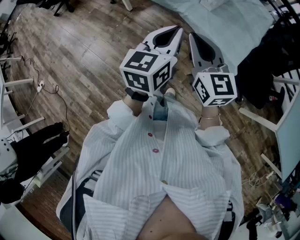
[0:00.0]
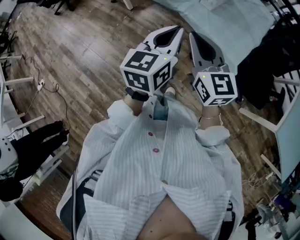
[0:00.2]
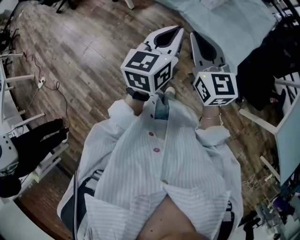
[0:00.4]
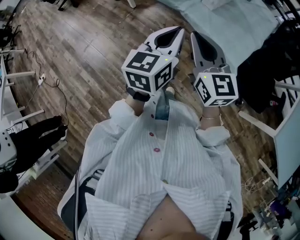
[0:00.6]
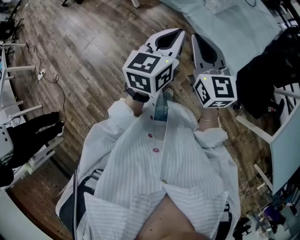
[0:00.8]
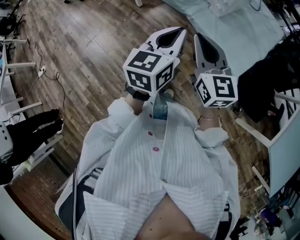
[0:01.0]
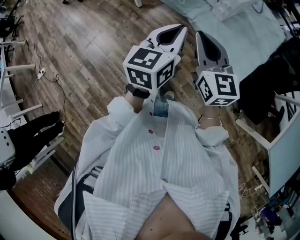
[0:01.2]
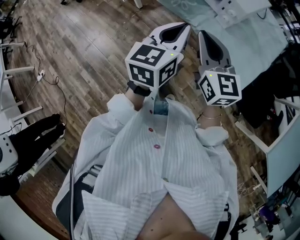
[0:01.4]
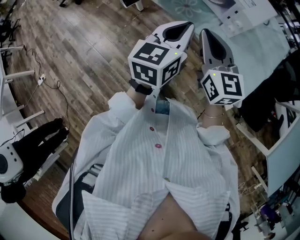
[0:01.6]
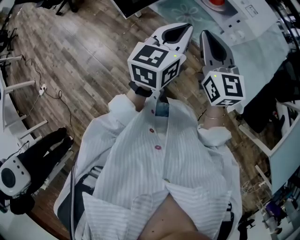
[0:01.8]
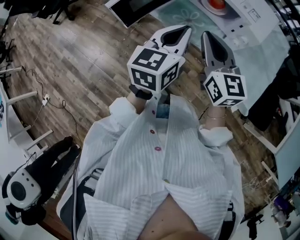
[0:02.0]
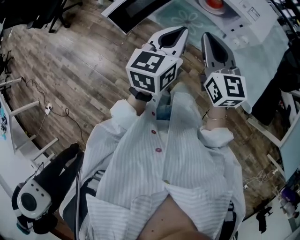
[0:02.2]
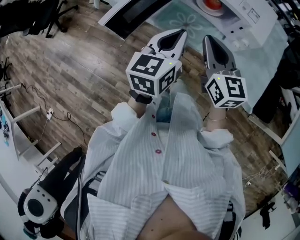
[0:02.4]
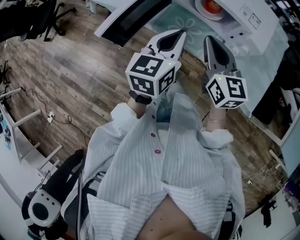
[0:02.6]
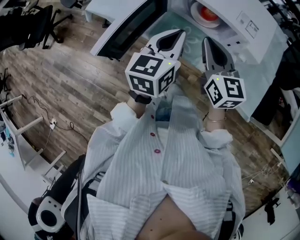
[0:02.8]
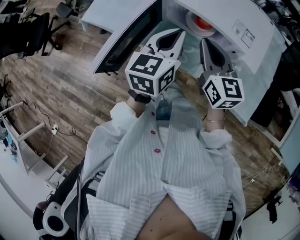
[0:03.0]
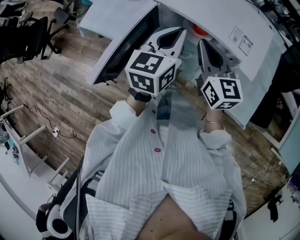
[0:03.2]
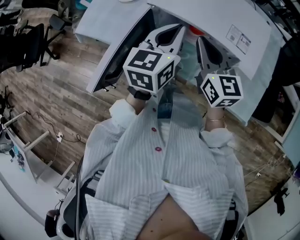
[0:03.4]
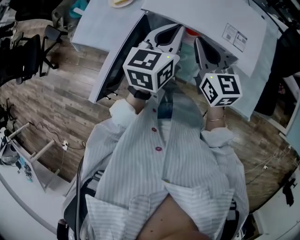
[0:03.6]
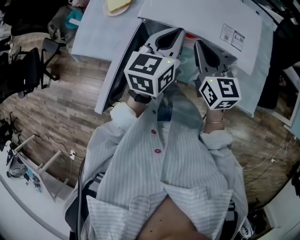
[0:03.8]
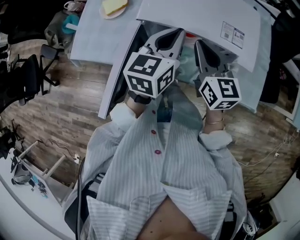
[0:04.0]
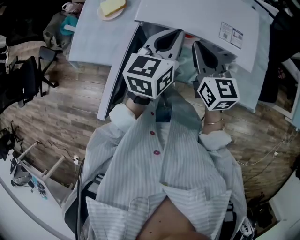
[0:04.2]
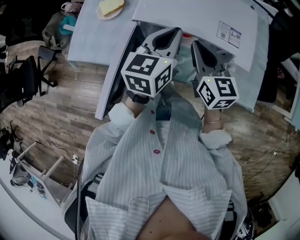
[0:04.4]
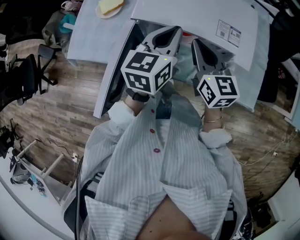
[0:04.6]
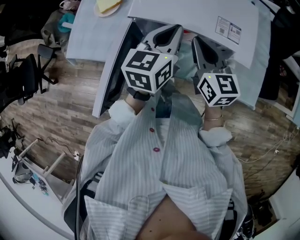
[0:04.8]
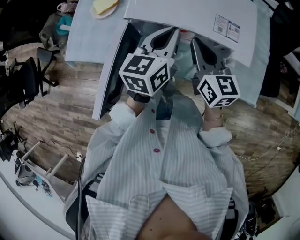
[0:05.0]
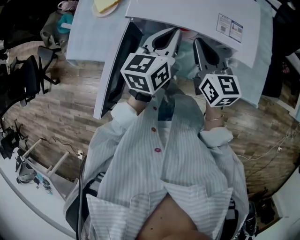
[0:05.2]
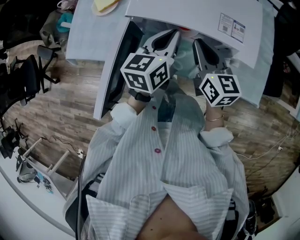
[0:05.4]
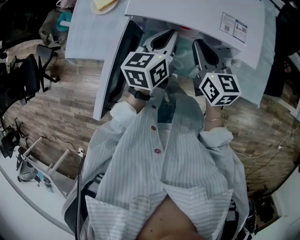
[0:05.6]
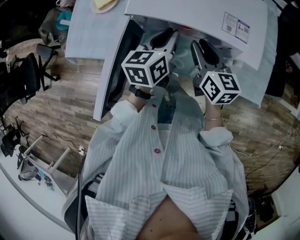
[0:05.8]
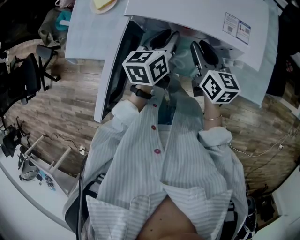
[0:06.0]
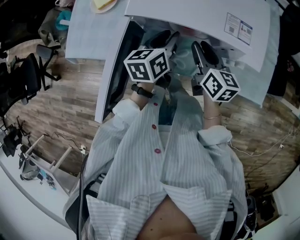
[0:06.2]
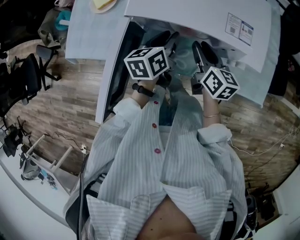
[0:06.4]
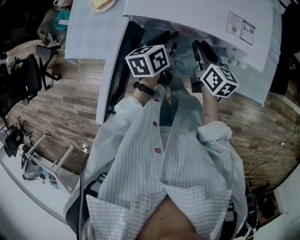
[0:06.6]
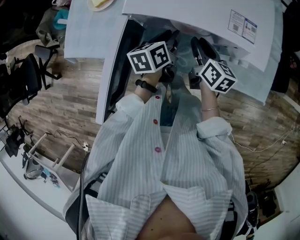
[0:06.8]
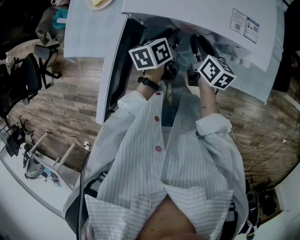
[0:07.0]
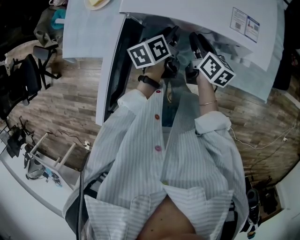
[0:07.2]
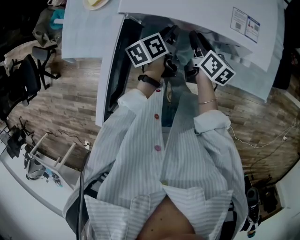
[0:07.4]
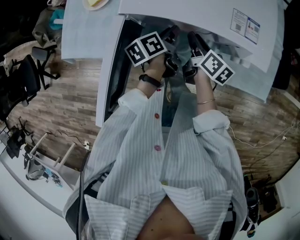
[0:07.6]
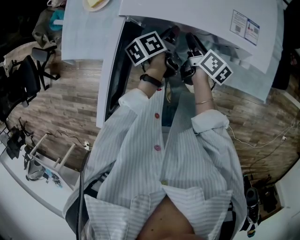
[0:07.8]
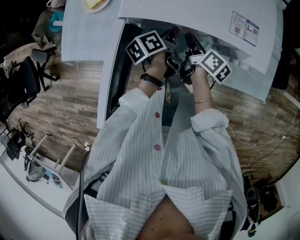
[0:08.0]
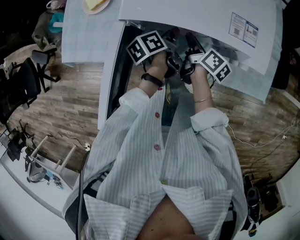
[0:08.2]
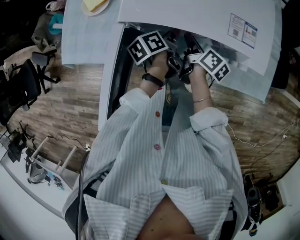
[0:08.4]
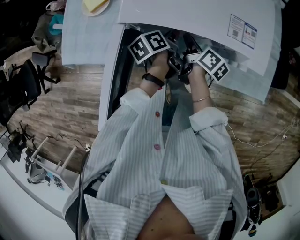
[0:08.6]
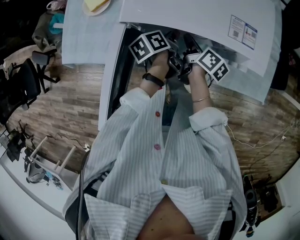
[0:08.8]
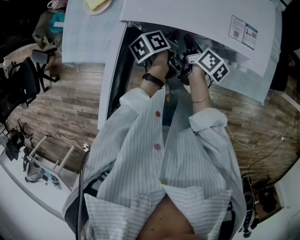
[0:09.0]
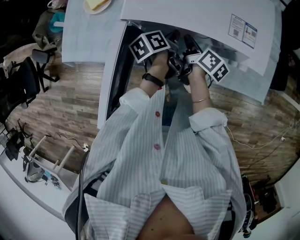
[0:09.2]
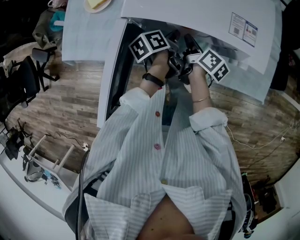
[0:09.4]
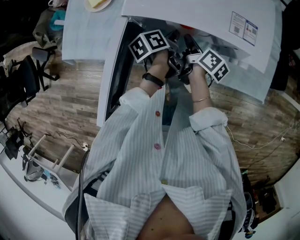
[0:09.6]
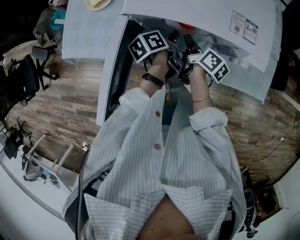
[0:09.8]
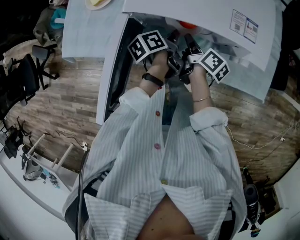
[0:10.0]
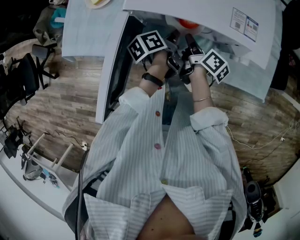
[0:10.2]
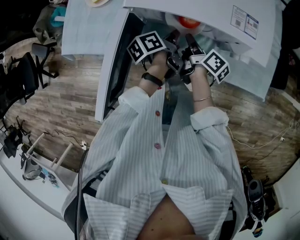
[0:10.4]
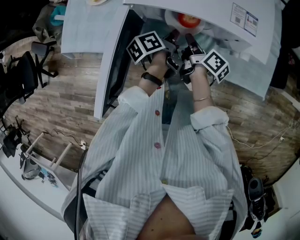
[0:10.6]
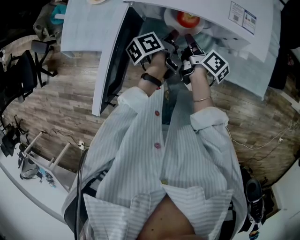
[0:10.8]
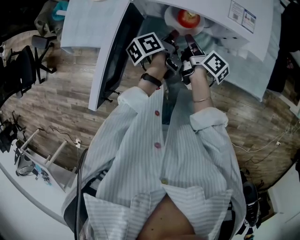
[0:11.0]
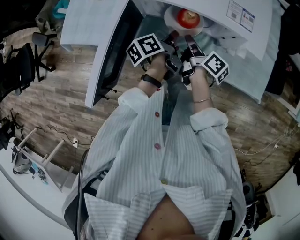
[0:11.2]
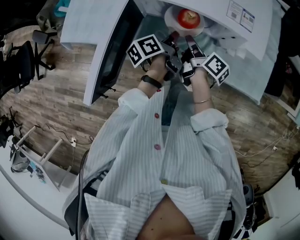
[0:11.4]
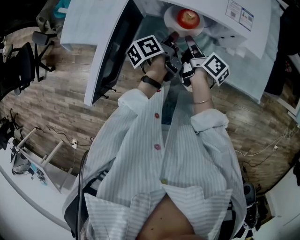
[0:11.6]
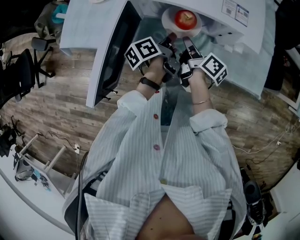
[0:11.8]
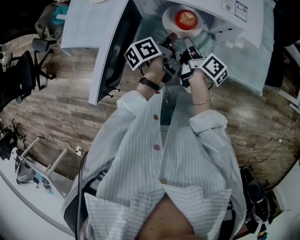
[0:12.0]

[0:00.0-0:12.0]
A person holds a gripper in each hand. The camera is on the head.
0:00.0 to 0:01.6: Both grippers move forward, some 20 cm.
0:01.6 to 0:03.0: Both grippers move forward, about 25 cm.
0:03.0 to 0:04.4: Both grippers move forward, about 10 cm.
0:04.4 to 0:06.0: Both grippers move downward, about 10 cm. The right gripper opens up; the left gripper opens up.
0:06.0 to 0:07.6: The two grippers go some 10 cm downward. The left gripper turns by about 30 degrees. Meanwhile the right gripper changes its angle by some 30 degrees.
0:07.6 to 0:10.4: The grippers move only a little.
0:10.4 to 0:12.0: The grippers both shift backward by some 5 cm.

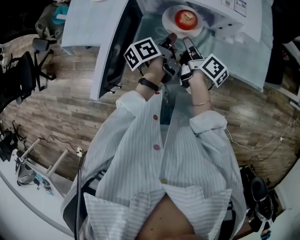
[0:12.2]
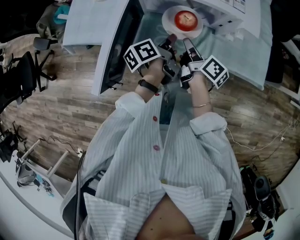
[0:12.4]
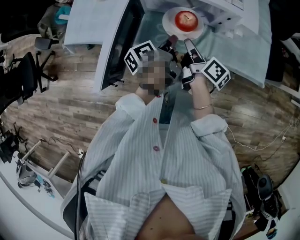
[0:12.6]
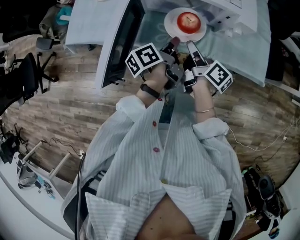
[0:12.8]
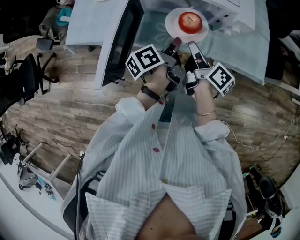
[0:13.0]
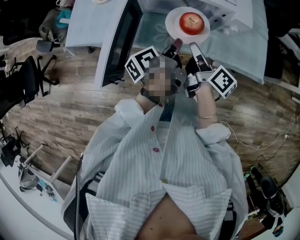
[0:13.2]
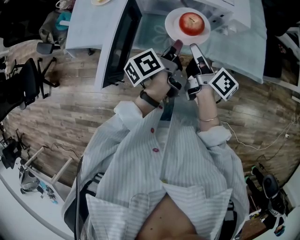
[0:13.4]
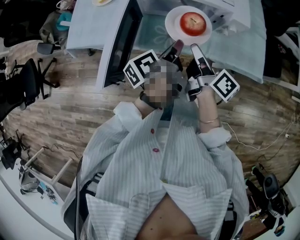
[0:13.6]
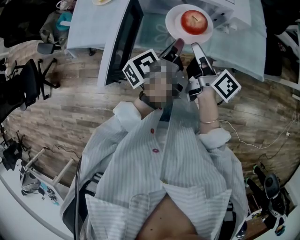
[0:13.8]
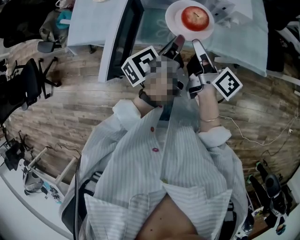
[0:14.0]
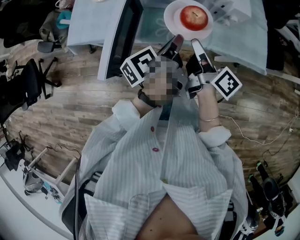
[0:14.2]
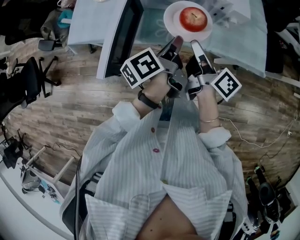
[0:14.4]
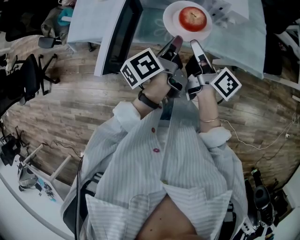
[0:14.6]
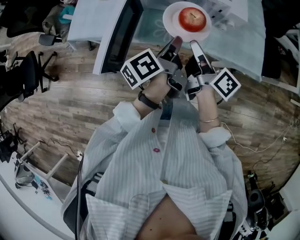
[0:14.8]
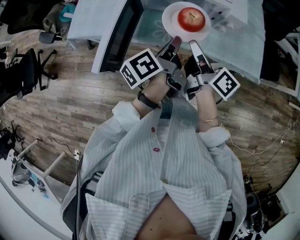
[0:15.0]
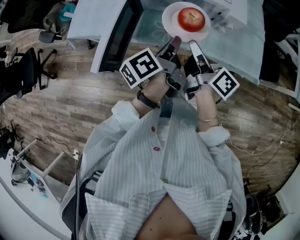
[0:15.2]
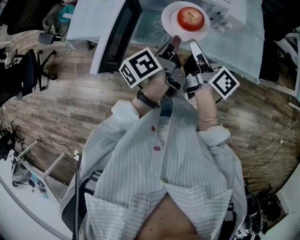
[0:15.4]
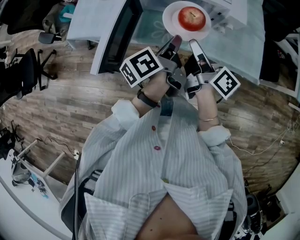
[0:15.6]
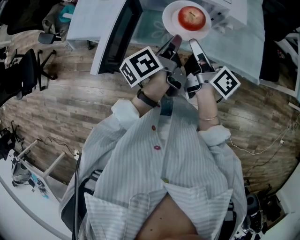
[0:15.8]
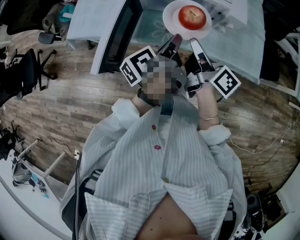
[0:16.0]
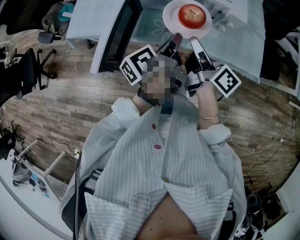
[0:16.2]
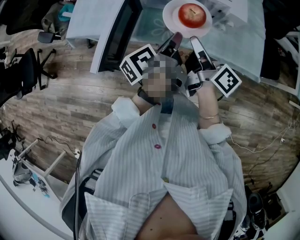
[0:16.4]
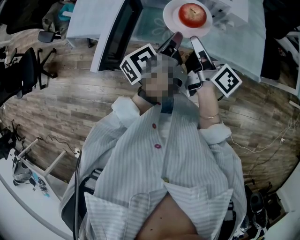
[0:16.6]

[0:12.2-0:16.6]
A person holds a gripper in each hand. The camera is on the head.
0:12.2 to 0:13.6: The grippers both shift upward and backward by roughly 15 cm.
0:13.6 to 0:15.2: The grippers make only small movements.
0:15.2 to 0:16.6: Both grippers stay about where they are.

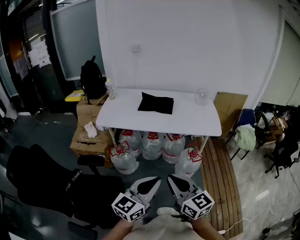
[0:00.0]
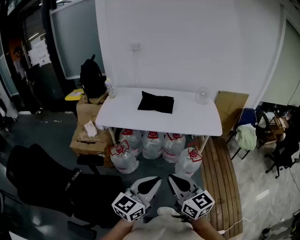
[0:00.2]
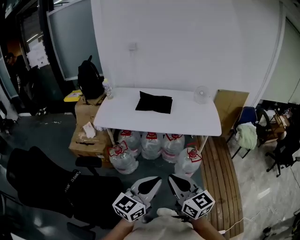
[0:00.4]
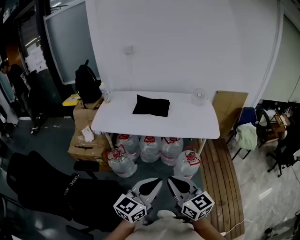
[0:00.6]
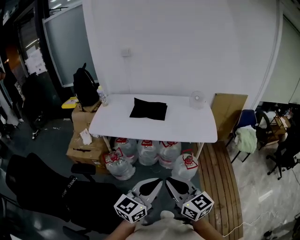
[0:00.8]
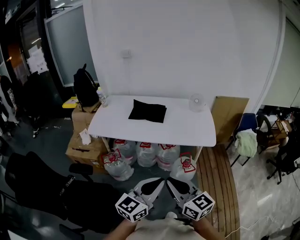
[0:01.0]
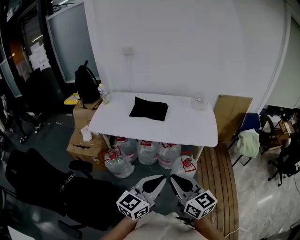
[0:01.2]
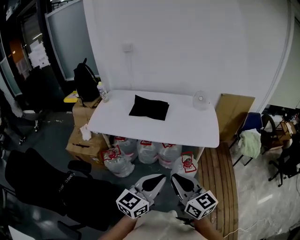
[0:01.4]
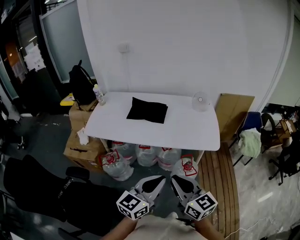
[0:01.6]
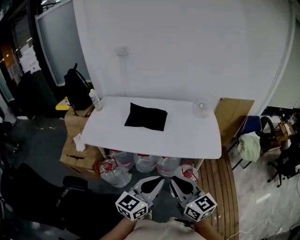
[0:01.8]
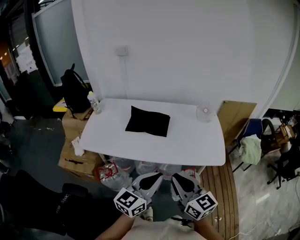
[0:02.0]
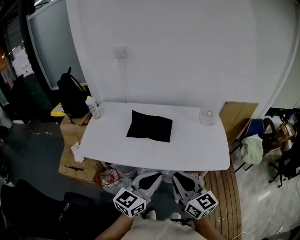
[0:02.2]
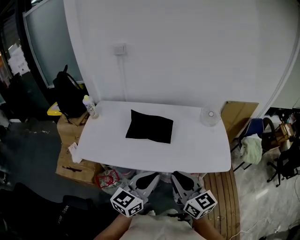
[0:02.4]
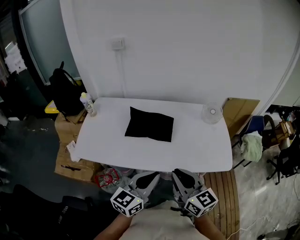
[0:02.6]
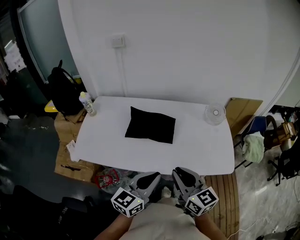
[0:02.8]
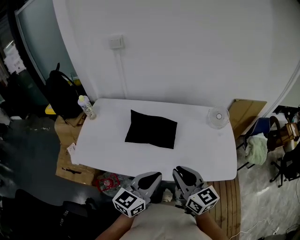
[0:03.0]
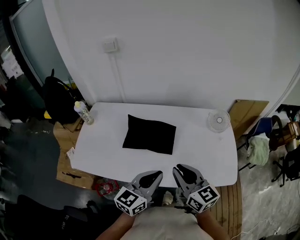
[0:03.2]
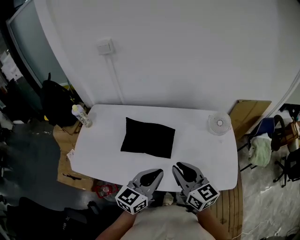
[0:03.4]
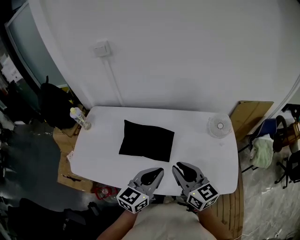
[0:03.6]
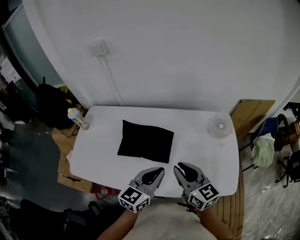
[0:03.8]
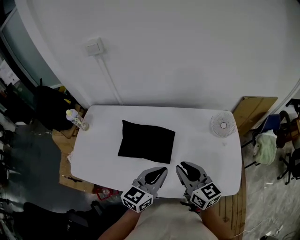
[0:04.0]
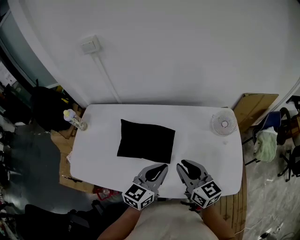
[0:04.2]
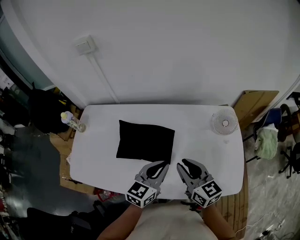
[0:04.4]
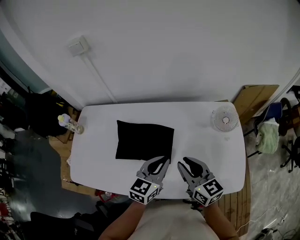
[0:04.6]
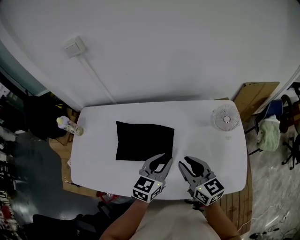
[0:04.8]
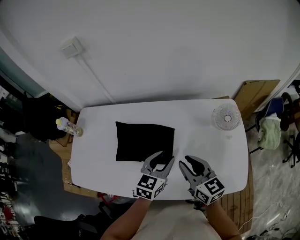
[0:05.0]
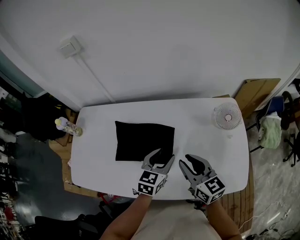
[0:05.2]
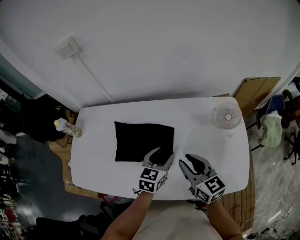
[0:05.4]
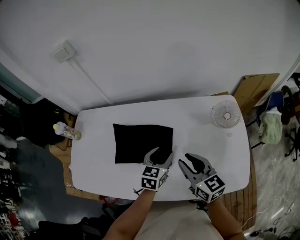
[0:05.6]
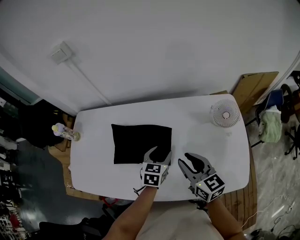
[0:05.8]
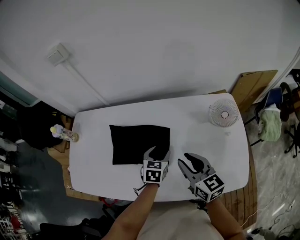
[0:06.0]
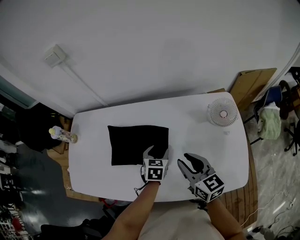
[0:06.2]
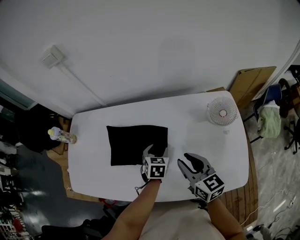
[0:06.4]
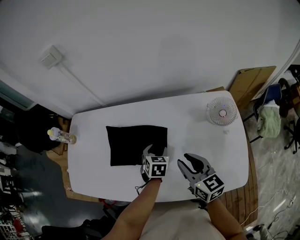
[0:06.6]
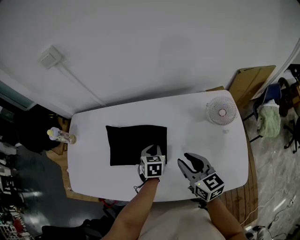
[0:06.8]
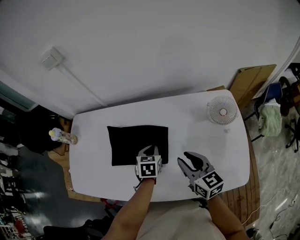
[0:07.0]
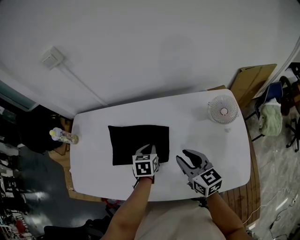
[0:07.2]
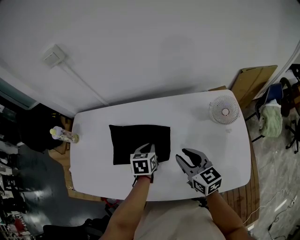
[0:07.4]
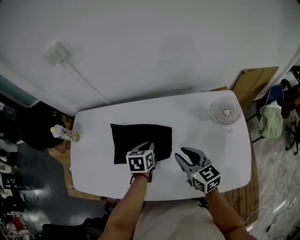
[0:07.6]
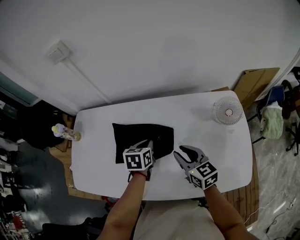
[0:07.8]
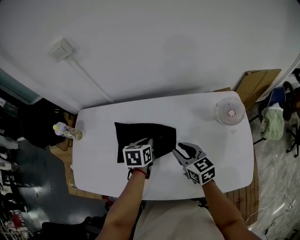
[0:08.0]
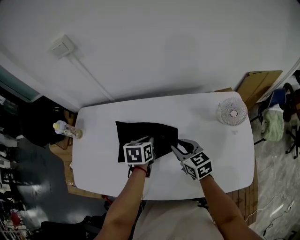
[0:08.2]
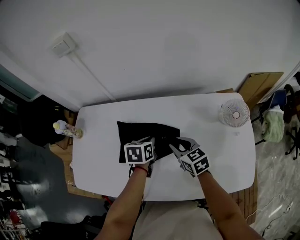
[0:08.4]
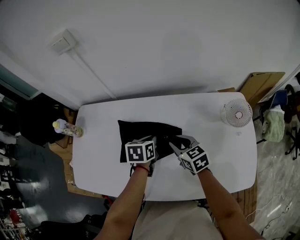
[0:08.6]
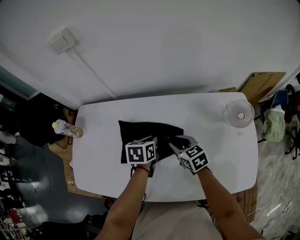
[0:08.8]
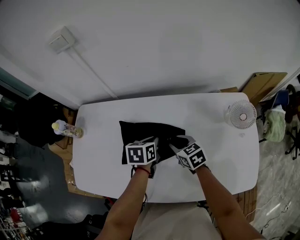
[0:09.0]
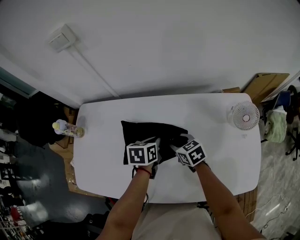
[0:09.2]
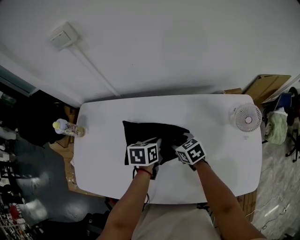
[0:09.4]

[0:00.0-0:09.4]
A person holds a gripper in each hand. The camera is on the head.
0:00.0 to 0:01.6: Both grippers travel together forward and to the right, some 20 cm.
0:01.6 to 0:03.2: Both grippers travel together forward, about 35 cm.
0:03.2 to 0:04.8: The grippers both shift forward and downward by approximately 20 cm.
0:04.8 to 0:06.2: The left gripper heads downward and forward, covering about 15 cm, changes its angle by about 30 degrees, and opens up.
0:06.2 to 0:07.8: The right gripper moves about 5 cm. Meanwhile the left gripper goes some 5 cm to the left, and closes its fingers.
0:07.8 to 0:09.4: The right gripper moves downward, forward and to the left, about 20 cm, and changes its angle by roughly 20 degrees, while the left gripper shifts by approximately 5 cm.
